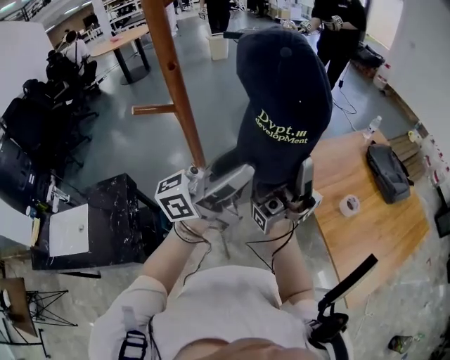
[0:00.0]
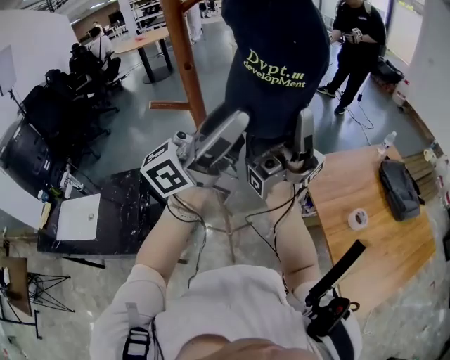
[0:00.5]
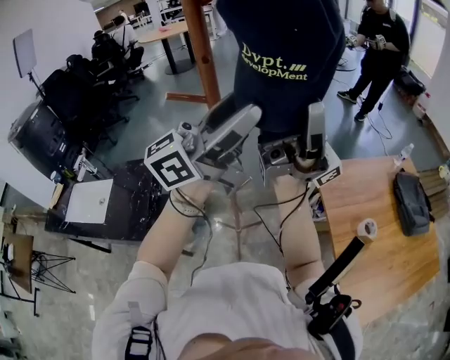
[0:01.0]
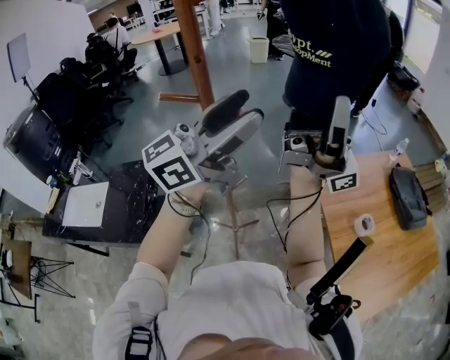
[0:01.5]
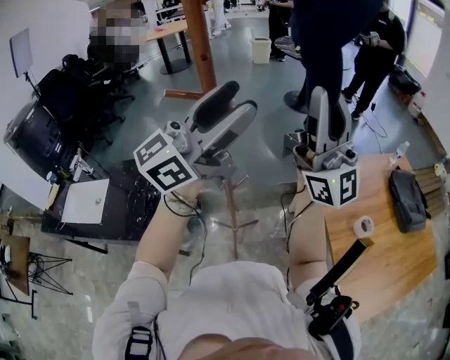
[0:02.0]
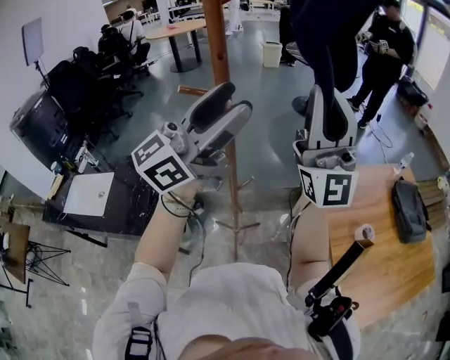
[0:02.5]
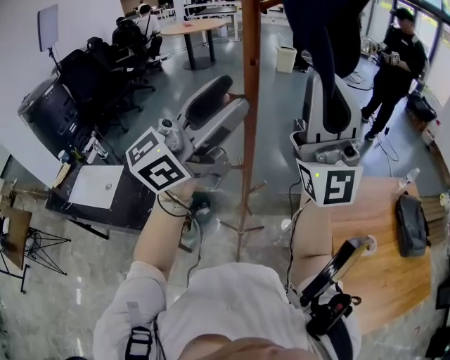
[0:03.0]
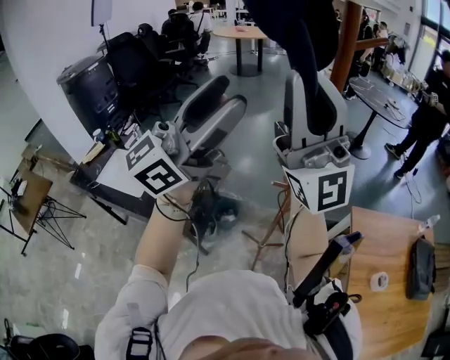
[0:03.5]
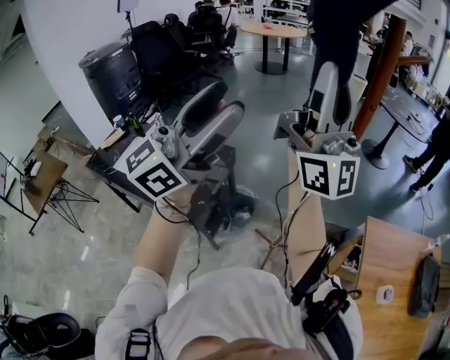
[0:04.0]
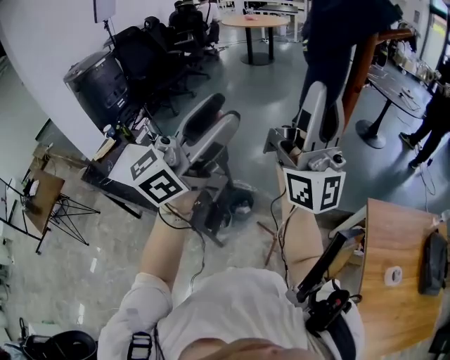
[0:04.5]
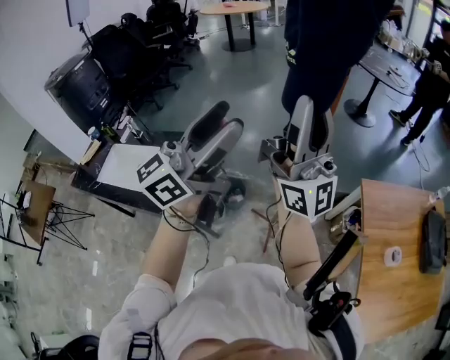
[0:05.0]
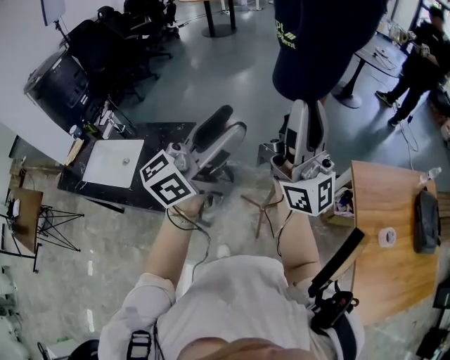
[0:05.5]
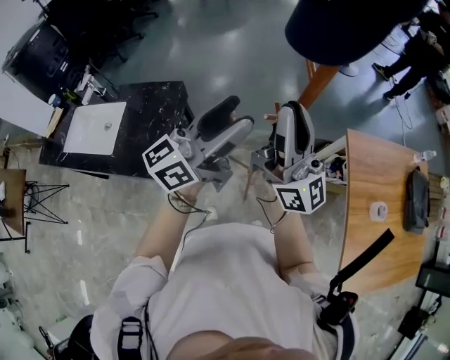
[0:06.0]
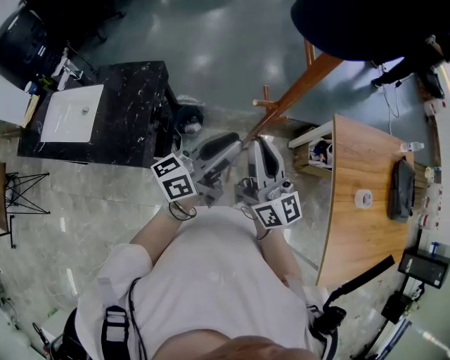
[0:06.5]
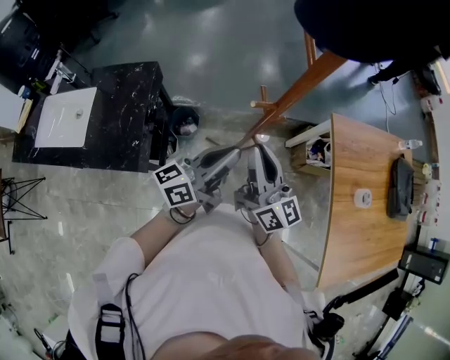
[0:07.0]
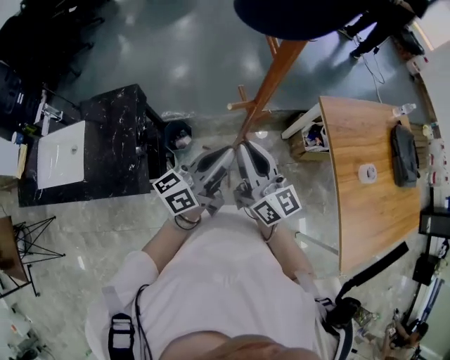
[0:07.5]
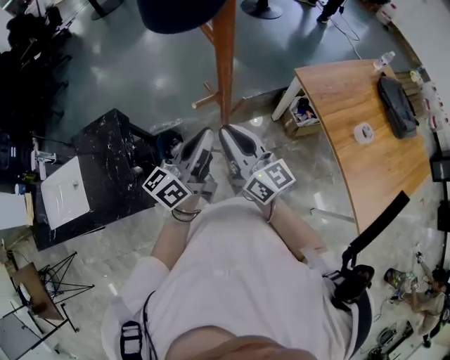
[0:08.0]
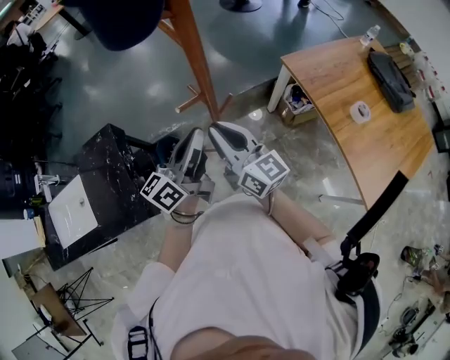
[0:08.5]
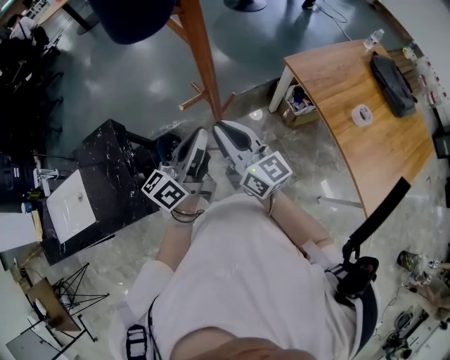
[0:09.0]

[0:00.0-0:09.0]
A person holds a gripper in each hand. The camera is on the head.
0:00.0 to 0:02.0: The two grippers go roughly 10 cm upward. The left gripper turns by approximately 40 degrees, while the right gripper twists approximately 80 degrees counterclockwise, seen from behind.
0:02.0 to 0:04.5: The right gripper moves some 10 cm upward and comes back, and changes its angle by roughly 20 degrees, while the left gripper changes place by some 30 cm, and turns by roughly 20 degrees.
0:04.5 to 0:07.0: Both grippers travel together downward, some 40 cm. The left gripper rotates around the line of its fingers by roughly 40 degrees, counterclockwise from behind, and closes up; the right gripper tips its fingers downward by about 50 degrees.
0:07.0 to 0:09.0: The left gripper ends up about 5 cm from where it was.

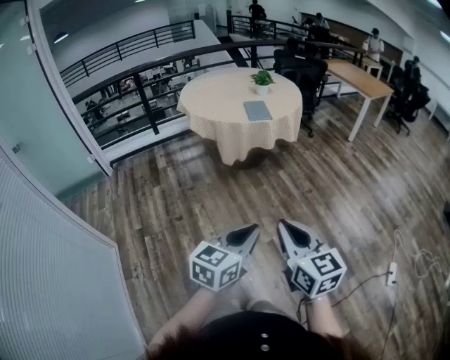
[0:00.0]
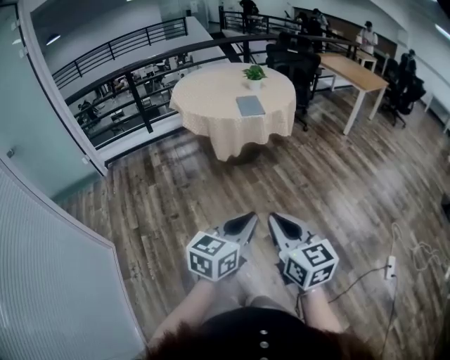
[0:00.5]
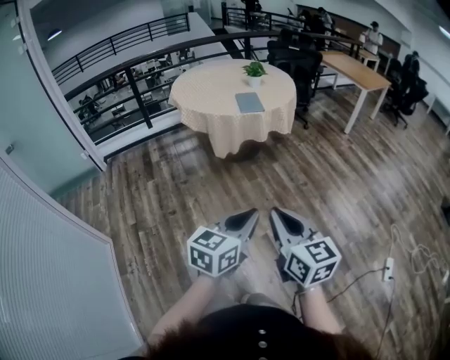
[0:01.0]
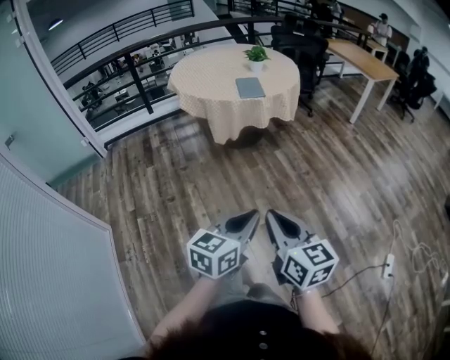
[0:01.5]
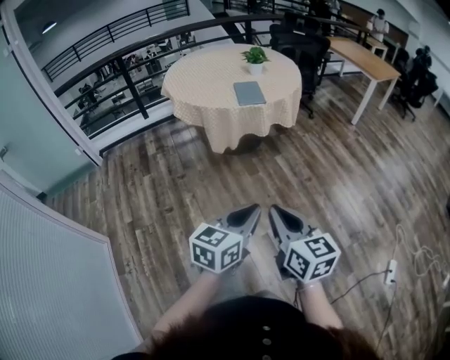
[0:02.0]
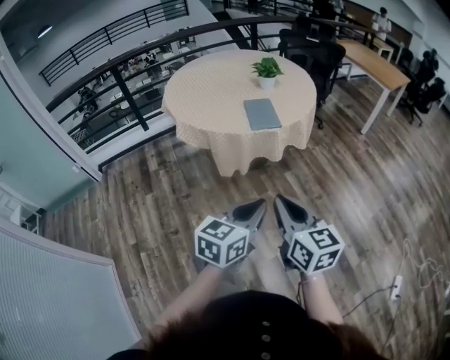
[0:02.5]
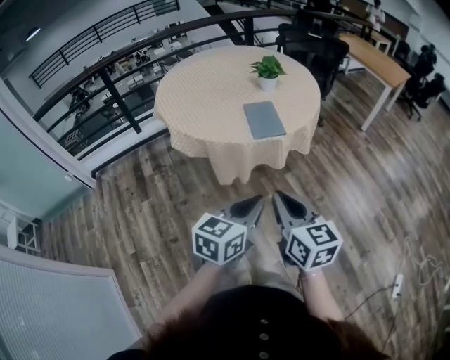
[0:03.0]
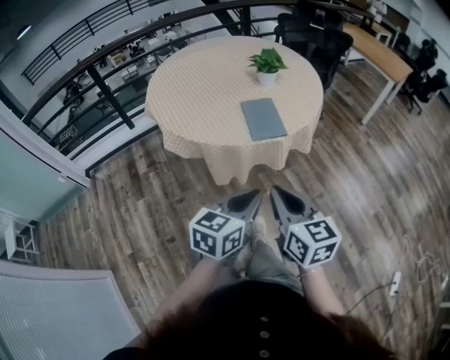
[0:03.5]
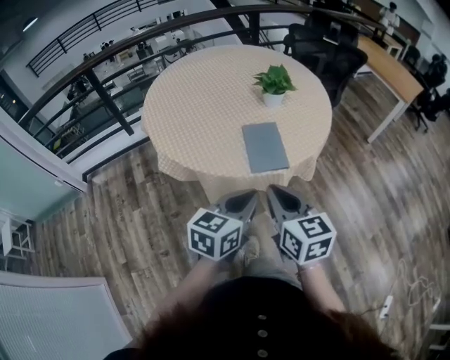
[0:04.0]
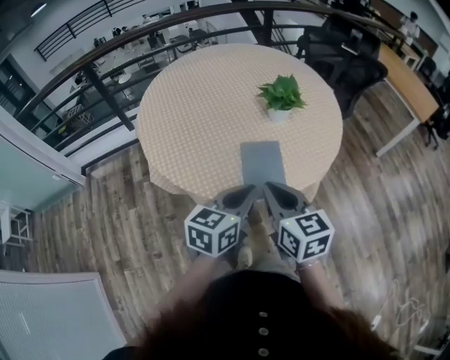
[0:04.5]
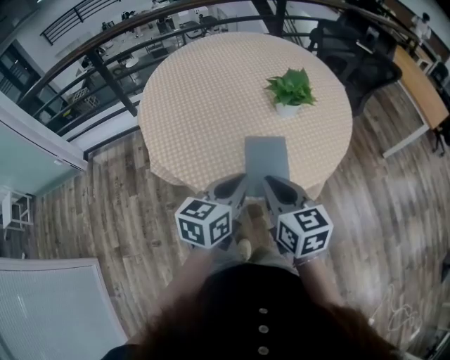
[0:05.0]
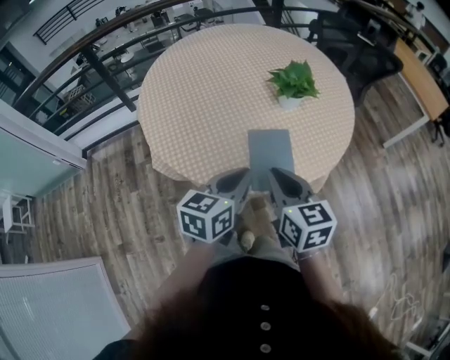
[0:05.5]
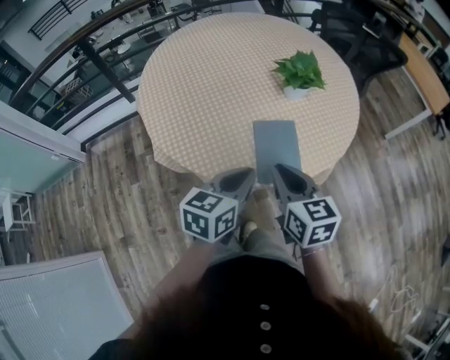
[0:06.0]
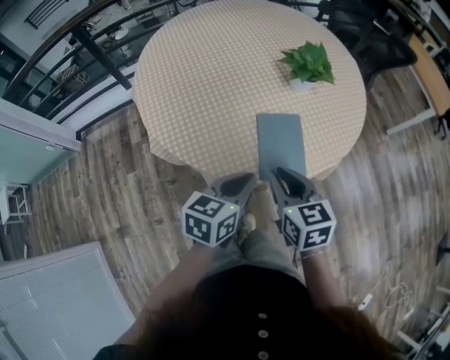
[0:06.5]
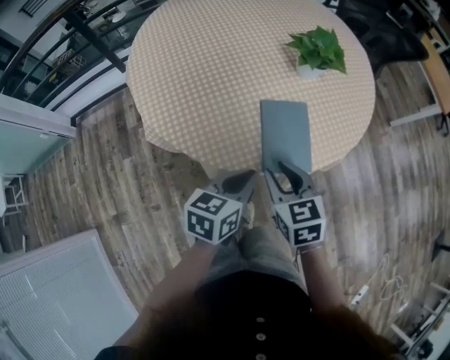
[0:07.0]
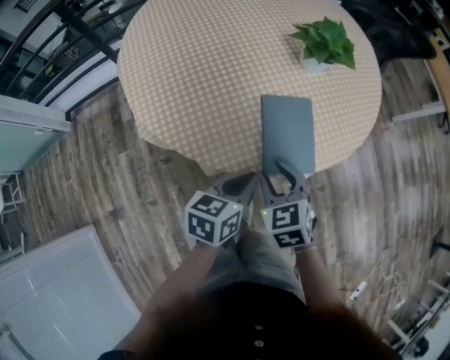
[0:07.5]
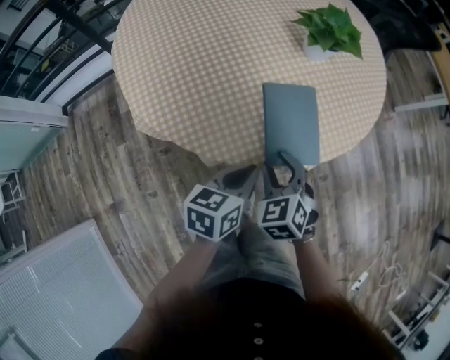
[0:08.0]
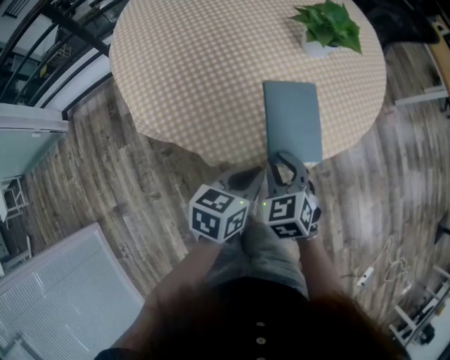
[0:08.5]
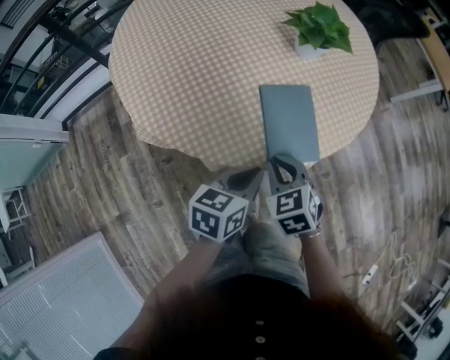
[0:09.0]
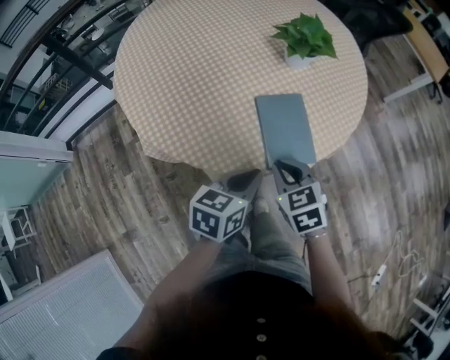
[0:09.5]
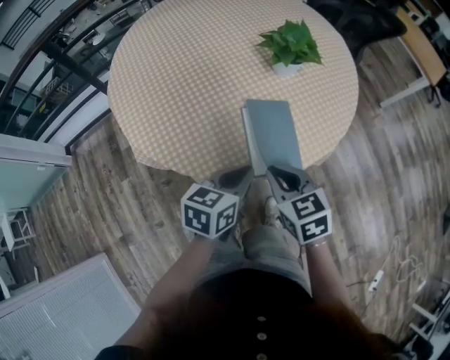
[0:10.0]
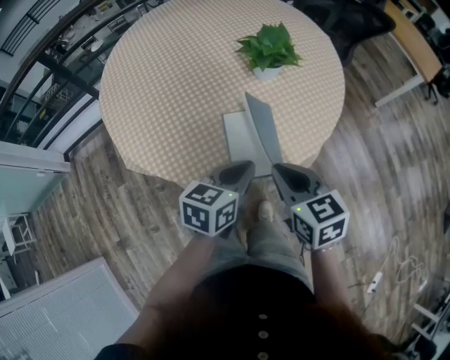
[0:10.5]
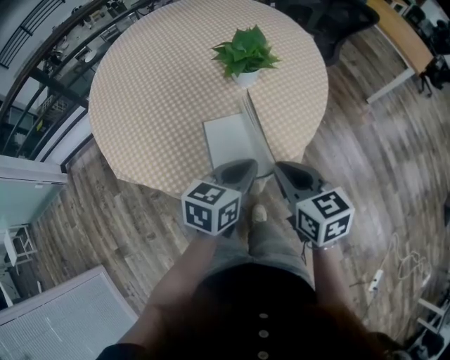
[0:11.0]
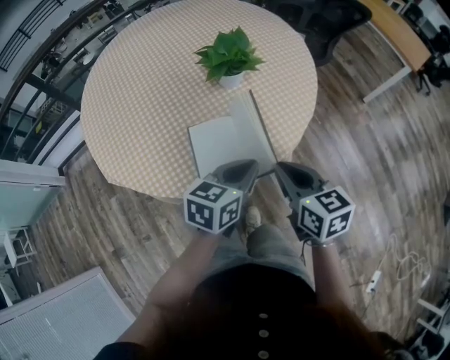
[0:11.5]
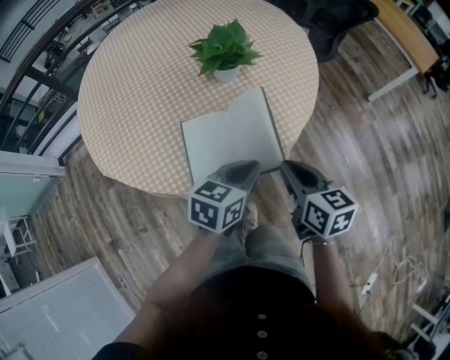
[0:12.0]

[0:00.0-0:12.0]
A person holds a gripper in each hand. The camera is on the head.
0:00.0 to 0:02.0: Both grippers travel together forward, about 15 cm.
0:02.0 to 0:04.0: Both grippers are carried forward, approximately 50 cm.
0:04.0 to 0:06.0: The grippers both shift forward by about 15 cm.
0:06.0 to 0:08.0: The two grippers go approximately 15 cm downward. The right gripper turns by approximately 40 degrees, and opens.
0:08.0 to 0:10.0: The right gripper travels upward by approximately 5 cm, rotates some 30 degrees, and closes up. The left gripper moves roughly 5 cm.
0:10.0 to 0:12.0: Both grippers travel together to the right, some 20 cm. The right gripper swivels some 20 degrees.

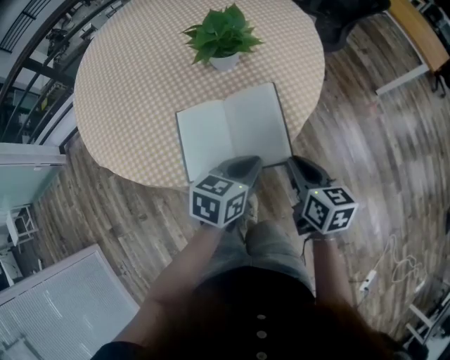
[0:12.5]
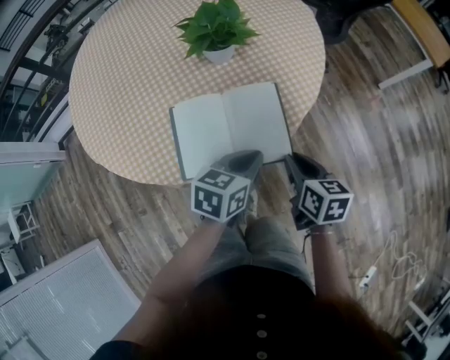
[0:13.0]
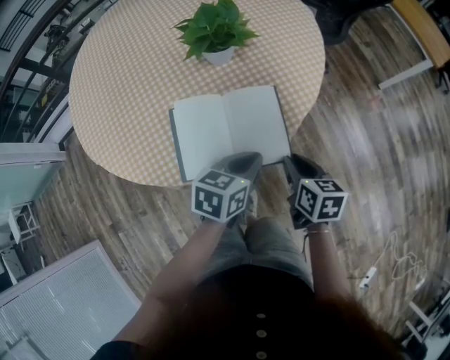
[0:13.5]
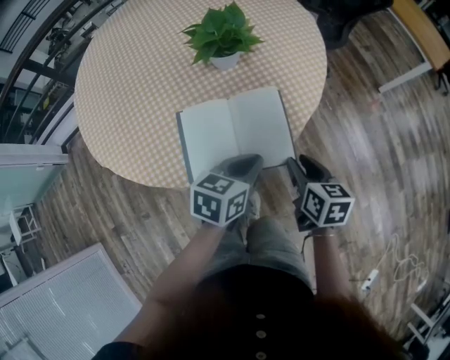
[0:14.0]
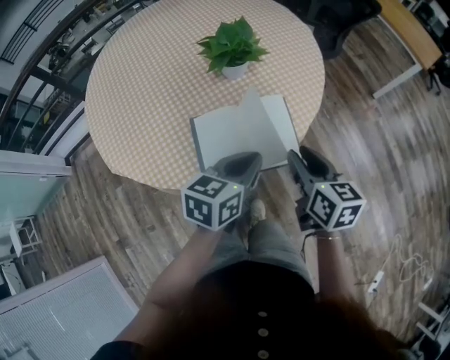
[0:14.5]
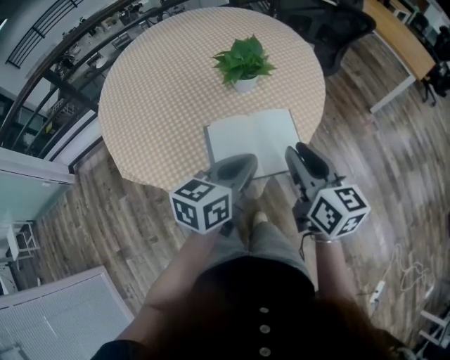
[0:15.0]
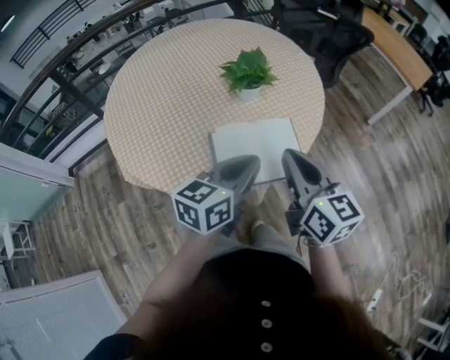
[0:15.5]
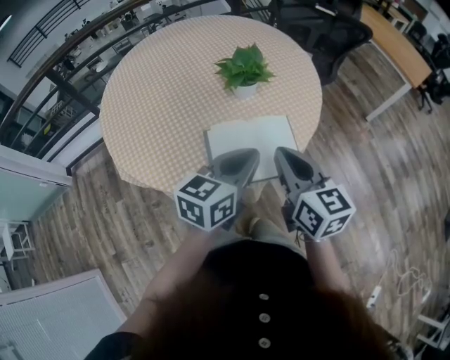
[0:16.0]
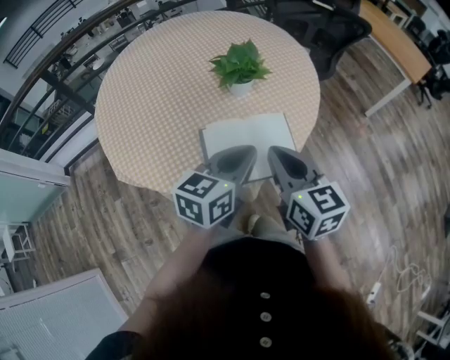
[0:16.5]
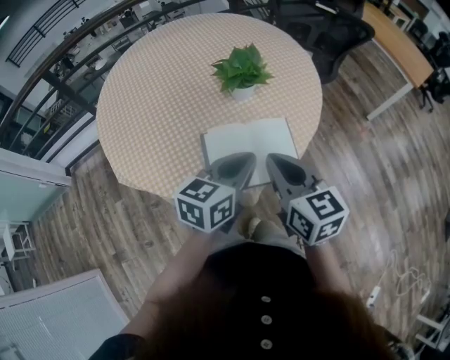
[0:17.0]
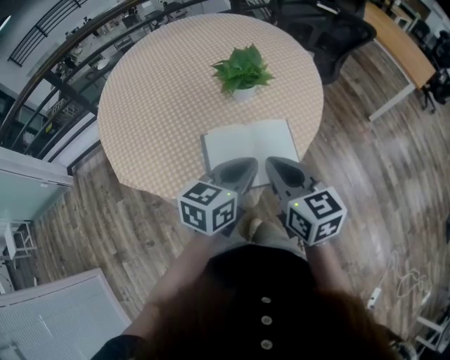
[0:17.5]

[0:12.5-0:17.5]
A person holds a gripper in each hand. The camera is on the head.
0:12.5 to 0:15.0: The grippers both shift upward and to the left by roughly 15 cm. The right gripper changes its angle by some 20 degrees, and opens.
0:15.0 to 0:17.5: The right gripper closes up.

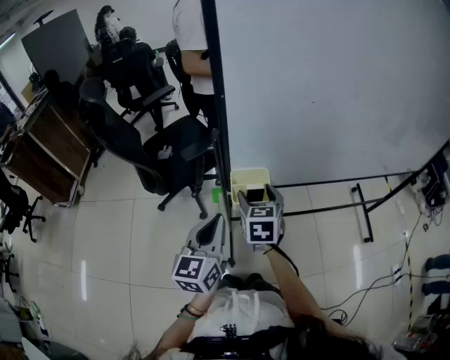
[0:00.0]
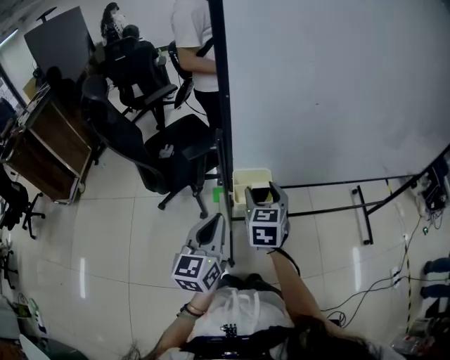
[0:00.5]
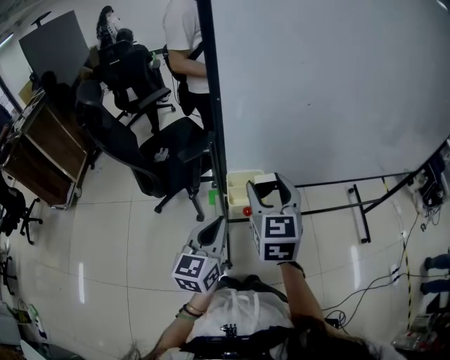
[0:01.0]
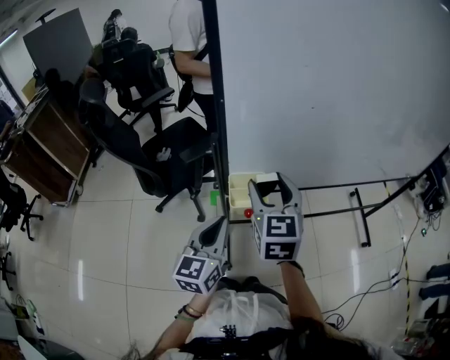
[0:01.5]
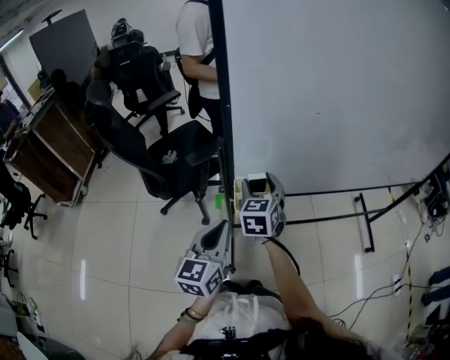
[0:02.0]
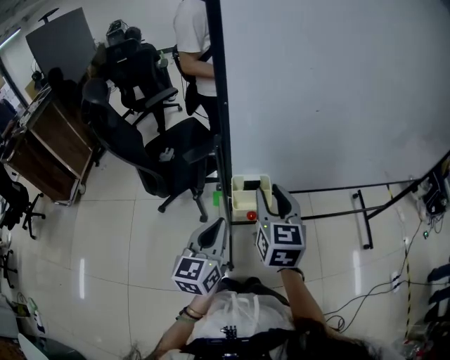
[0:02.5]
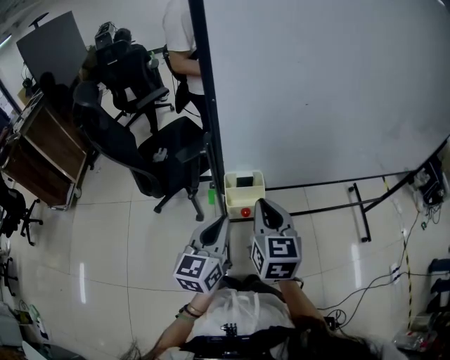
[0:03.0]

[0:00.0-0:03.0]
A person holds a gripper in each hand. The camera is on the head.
0:00.0 to 0:01.5: The right gripper goes approximately 15 cm upward.
0:01.5 to 0:03.0: The right gripper closes its fingers.
